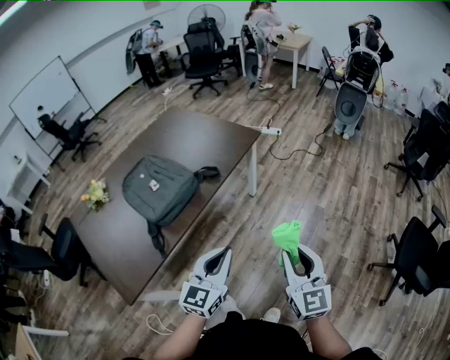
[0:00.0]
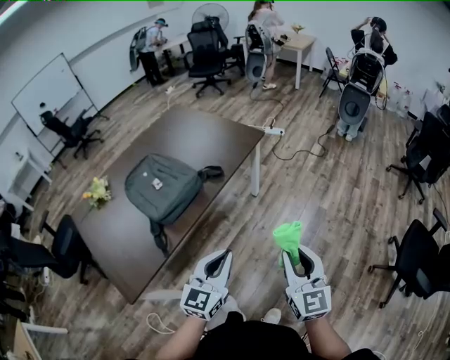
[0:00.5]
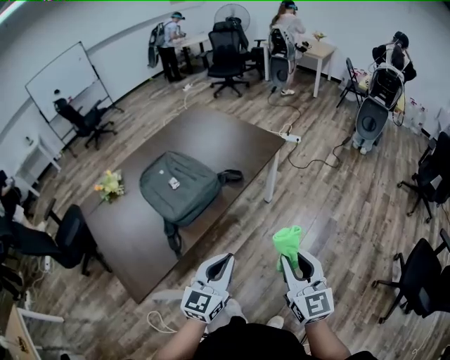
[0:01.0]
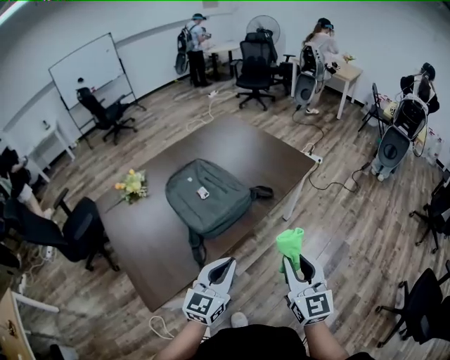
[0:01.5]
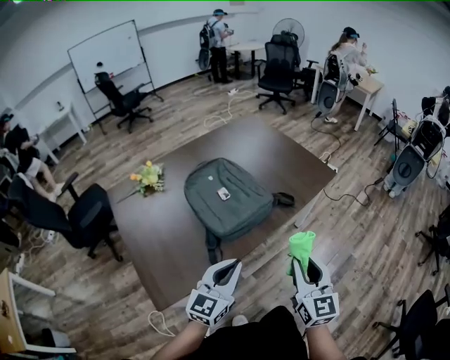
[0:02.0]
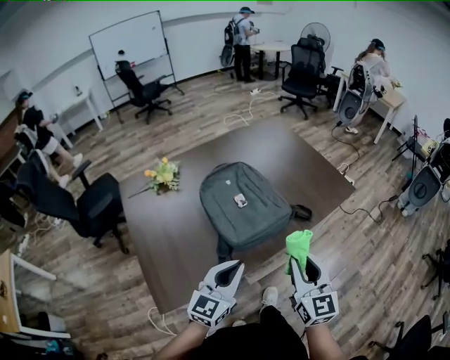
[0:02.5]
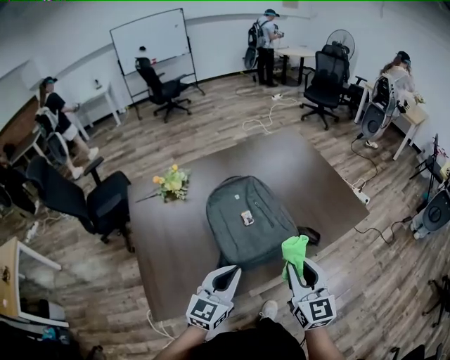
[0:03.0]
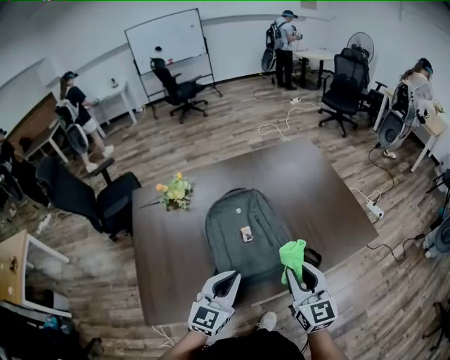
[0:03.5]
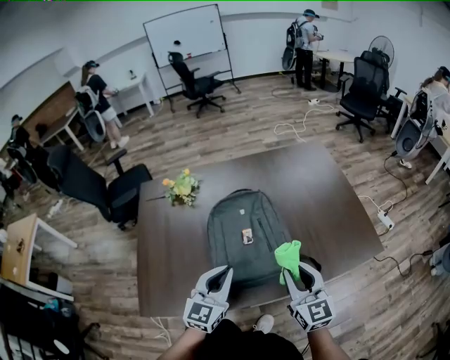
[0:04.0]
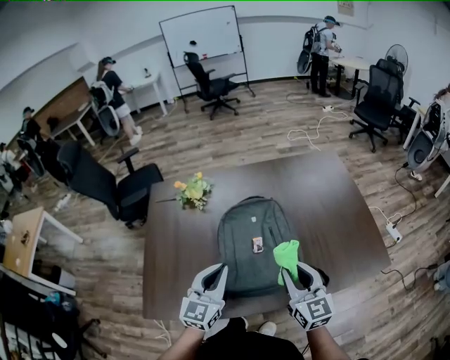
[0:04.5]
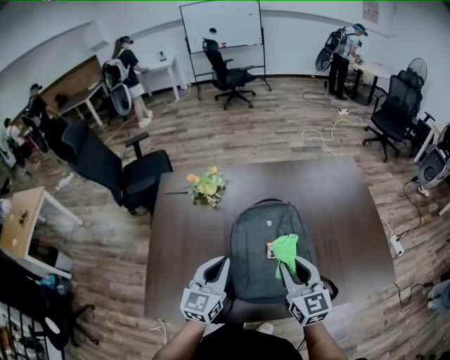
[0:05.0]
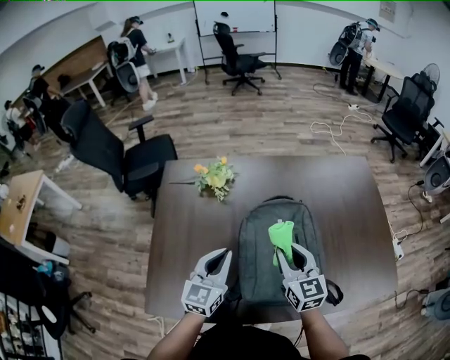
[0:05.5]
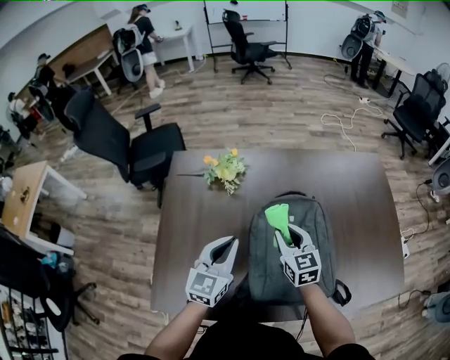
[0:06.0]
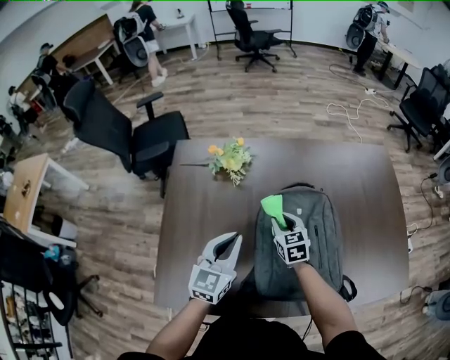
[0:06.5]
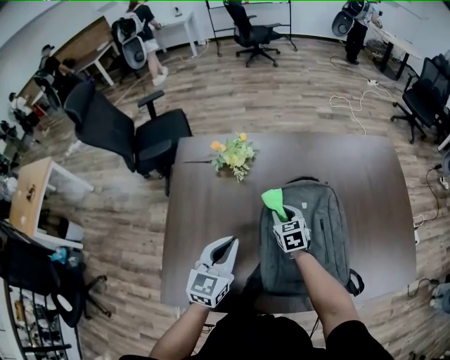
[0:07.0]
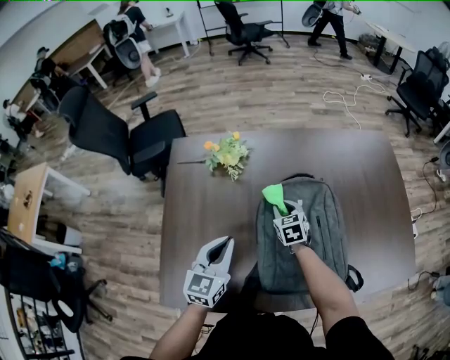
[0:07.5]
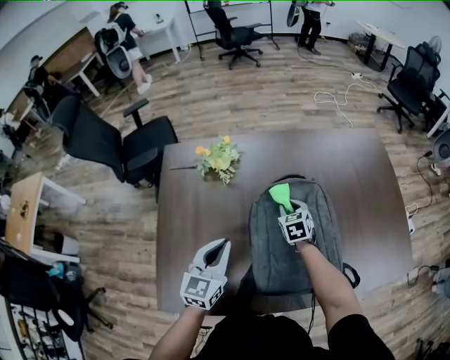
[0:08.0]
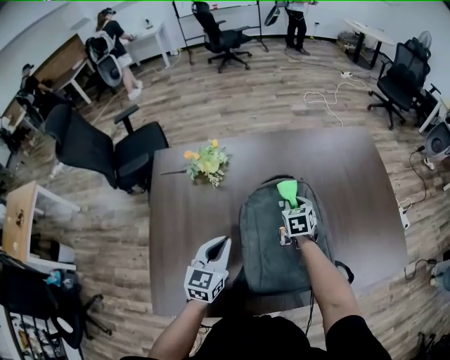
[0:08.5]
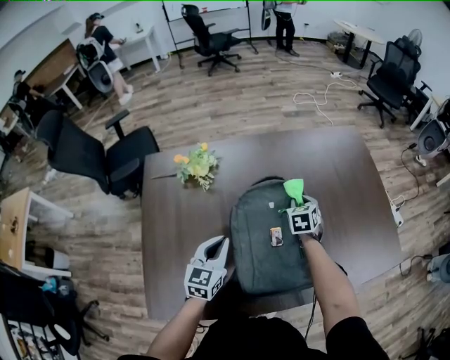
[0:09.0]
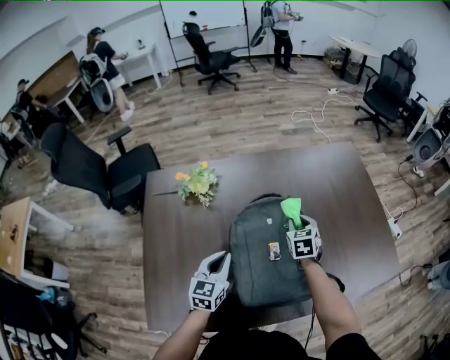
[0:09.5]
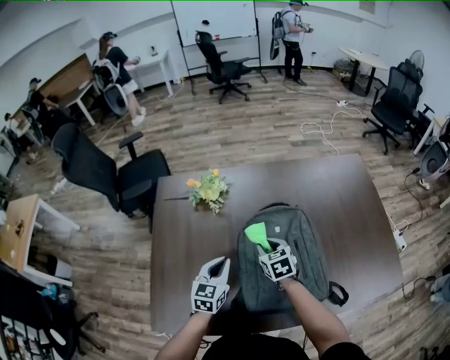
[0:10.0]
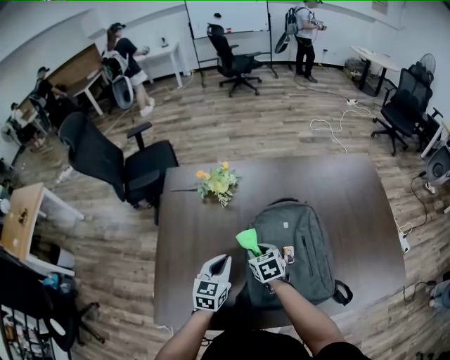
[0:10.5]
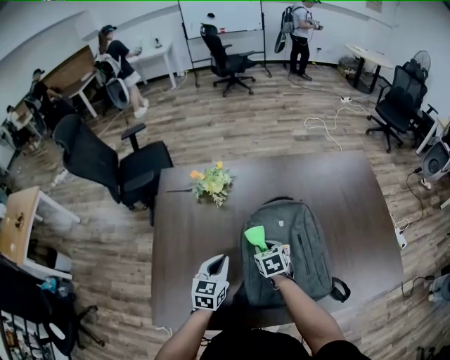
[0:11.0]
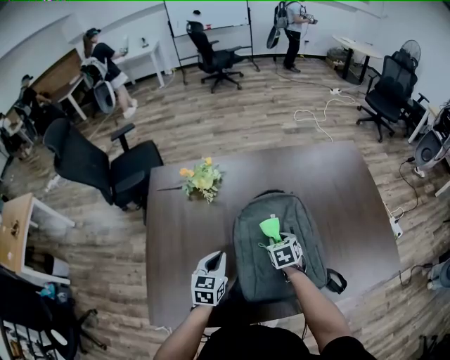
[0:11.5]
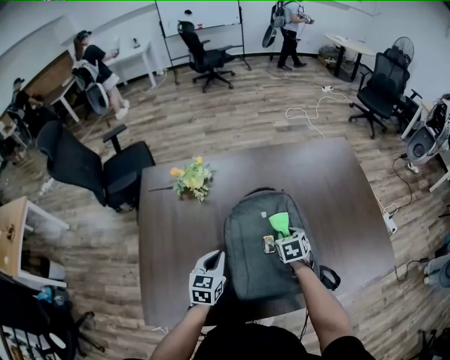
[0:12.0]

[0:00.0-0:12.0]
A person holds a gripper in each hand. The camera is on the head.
0:00.0 to 0:02.0: The left gripper moves to the left, about 20 cm, while the right gripper moves to the left and forward, some 25 cm.
0:02.0 to 0:04.0: The right gripper ends up roughly 25 cm from where it was, and swivels roughly 30 degrees. The left gripper moves approximately 20 cm, and rotates about 30 degrees.
0:04.0 to 0:06.0: Both grippers travel together forward and to the left, about 25 cm. The right gripper changes its angle by roughly 20 degrees.
0:06.0 to 0:08.0: The right gripper travels downward and forward by about 15 cm, and rotates roughly 30 degrees.
0:08.0 to 0:10.0: The right gripper travels backward by some 5 cm, and travels to the right and back again, roughly 10 cm each way; the left gripper travels downward by roughly 5 cm.
0:10.0 to 0:12.0: The right gripper shifts some 15 cm to the right, and rotates approximately 20 degrees.

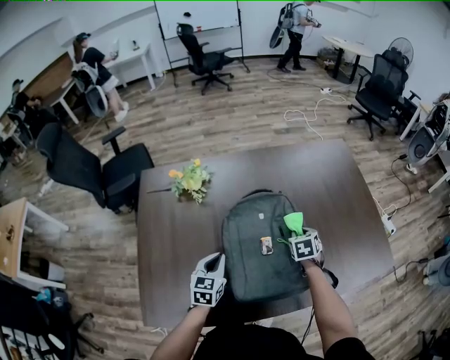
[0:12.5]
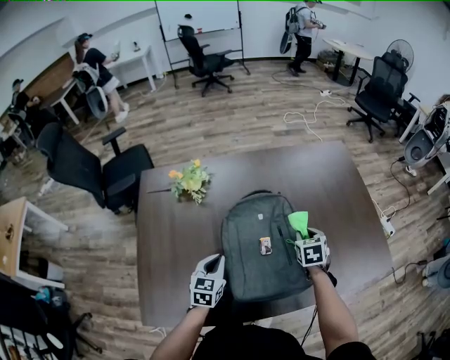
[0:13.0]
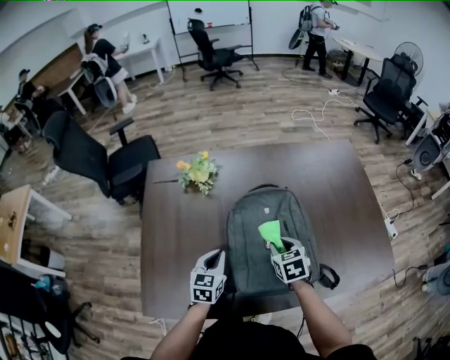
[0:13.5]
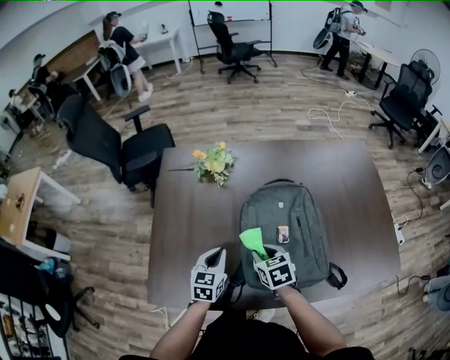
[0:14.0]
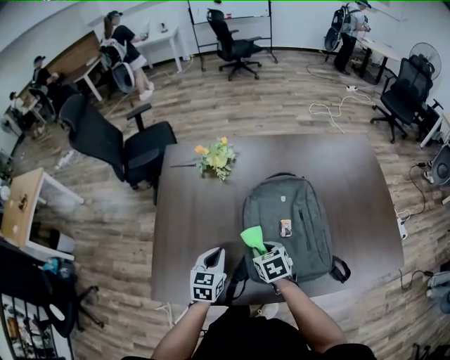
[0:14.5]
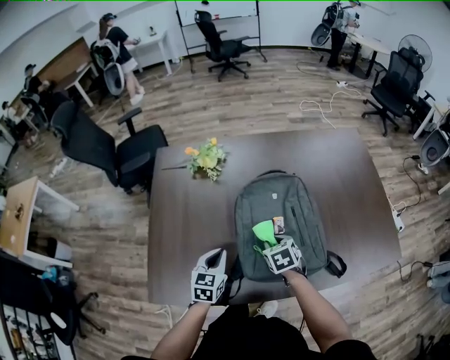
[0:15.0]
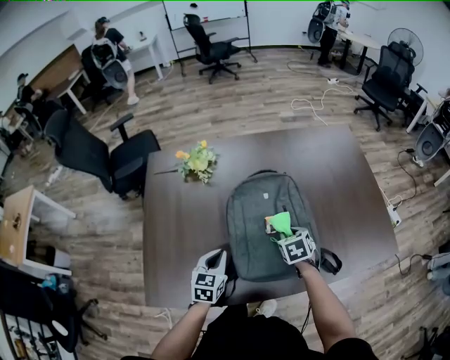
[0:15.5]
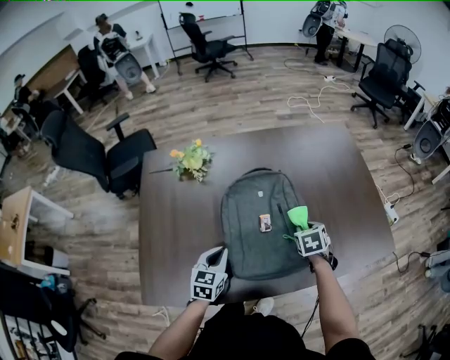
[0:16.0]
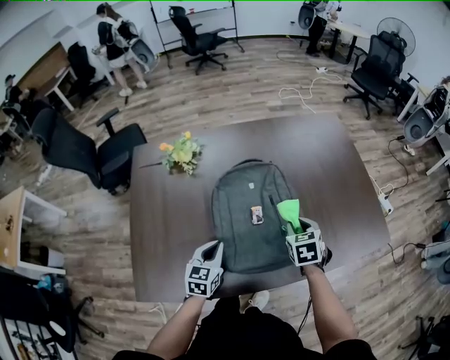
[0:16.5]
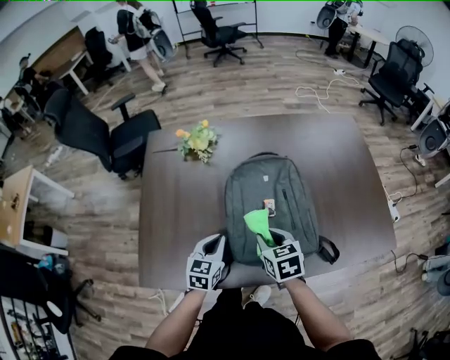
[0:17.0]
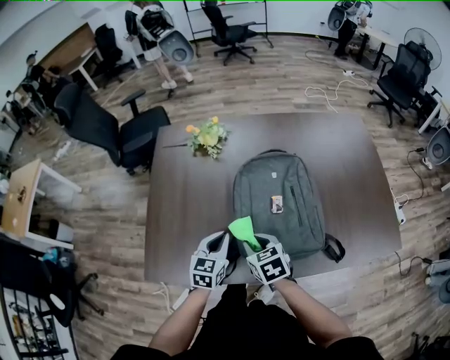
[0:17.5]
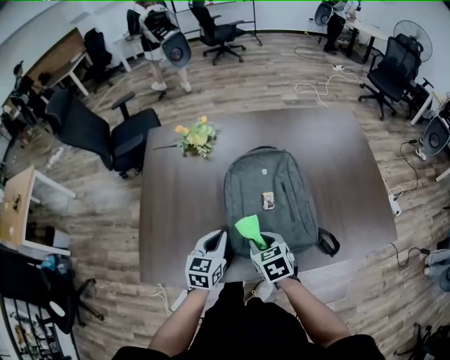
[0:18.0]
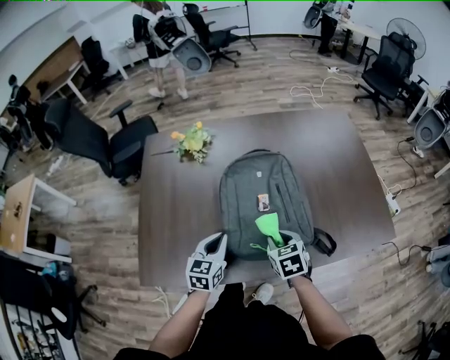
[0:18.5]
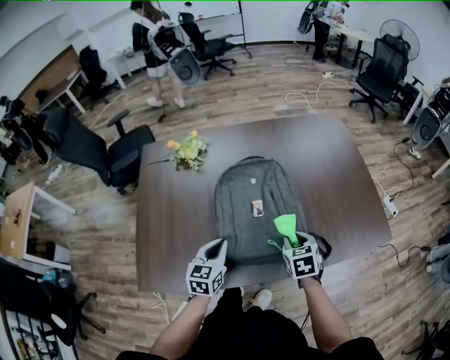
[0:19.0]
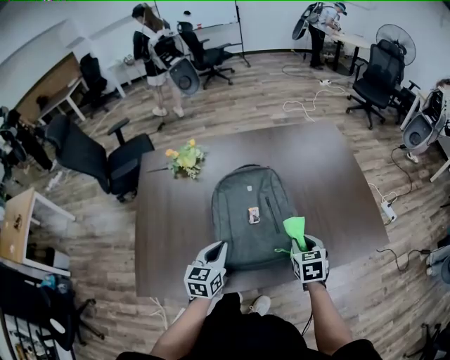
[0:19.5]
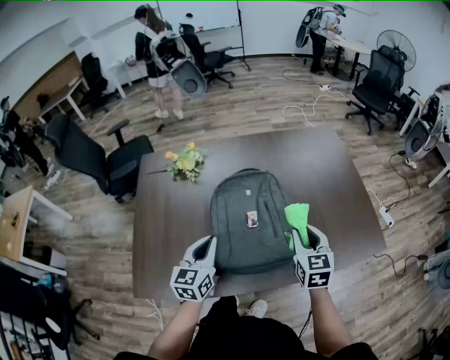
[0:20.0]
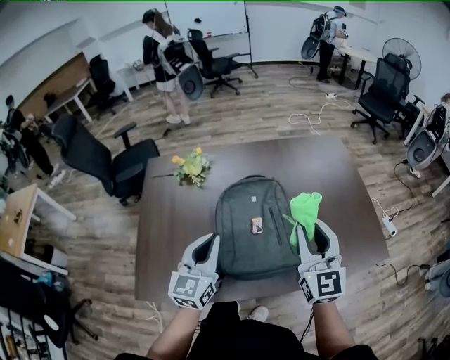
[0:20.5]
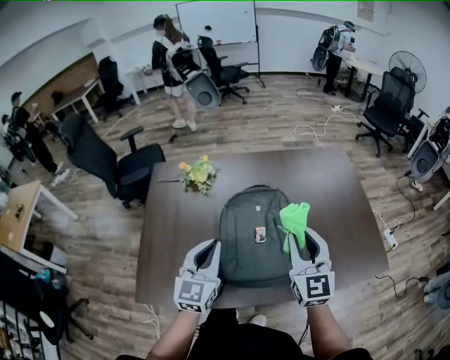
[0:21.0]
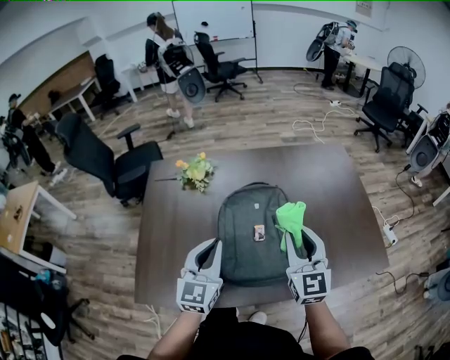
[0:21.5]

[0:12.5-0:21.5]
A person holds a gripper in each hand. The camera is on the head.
0:12.5 to 0:14.5: The right gripper heads to the left and backward, covering some 25 cm, and changes its angle by approximately 30 degrees, while the left gripper travels backward and to the left by roughly 10 cm.
0:14.5 to 0:17.0: The right gripper travels upward by approximately 5 cm, and moves roughly 25 cm to the right and comes back, while the left gripper heads to the right, covering some 5 cm.
0:17.0 to 0:19.5: The right gripper moves to the right, about 20 cm. The left gripper shifts roughly 5 cm to the right.
0:19.5 to 0:21.5: Both grippers travel together upward, about 15 cm. The left gripper rotates some 30 degrees; the right gripper angles its fingers upward, by some 40 degrees.

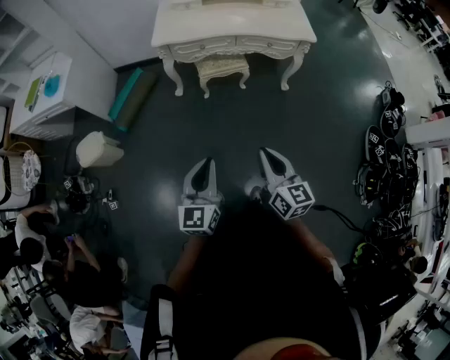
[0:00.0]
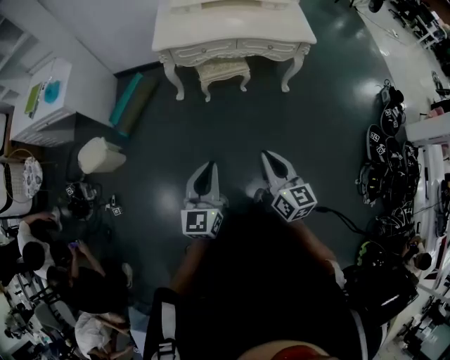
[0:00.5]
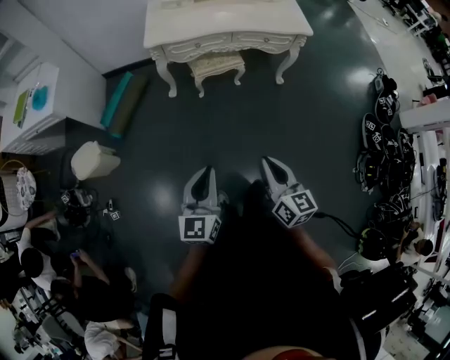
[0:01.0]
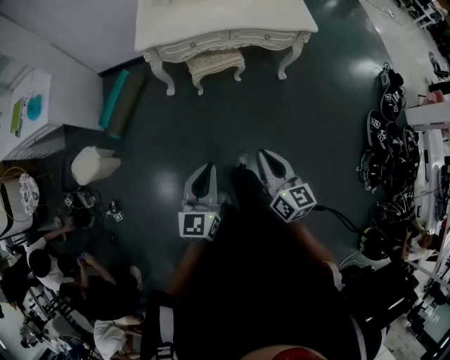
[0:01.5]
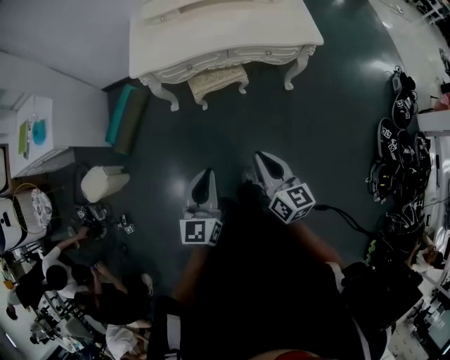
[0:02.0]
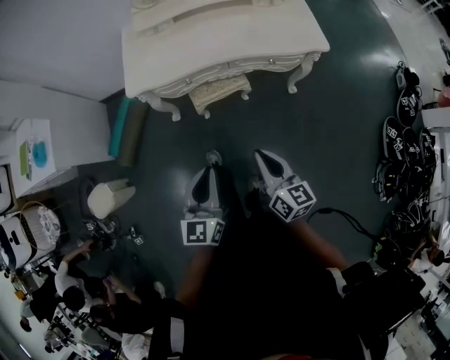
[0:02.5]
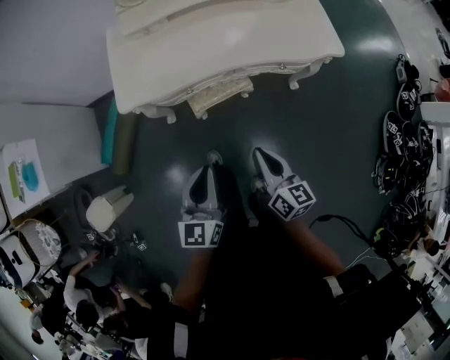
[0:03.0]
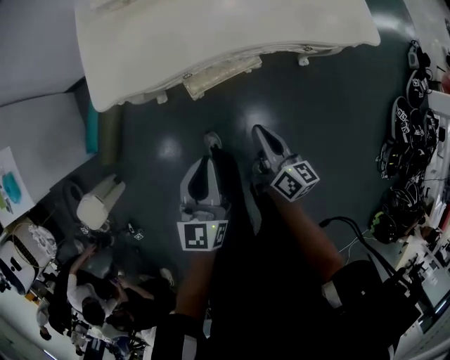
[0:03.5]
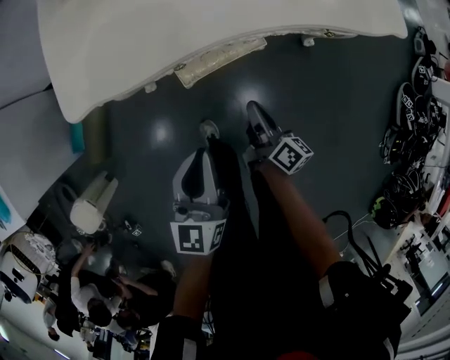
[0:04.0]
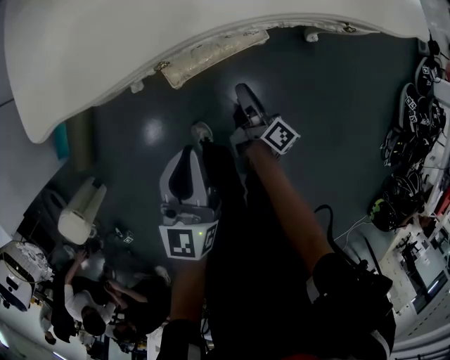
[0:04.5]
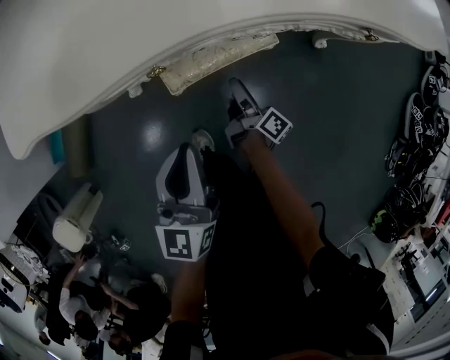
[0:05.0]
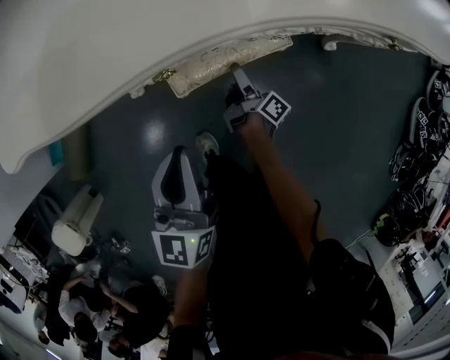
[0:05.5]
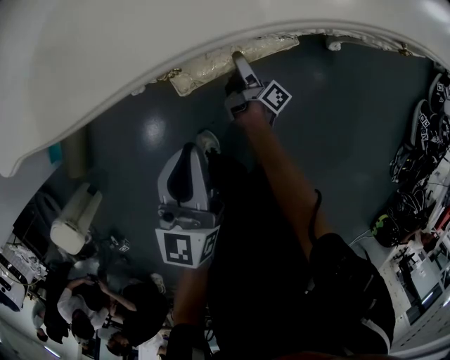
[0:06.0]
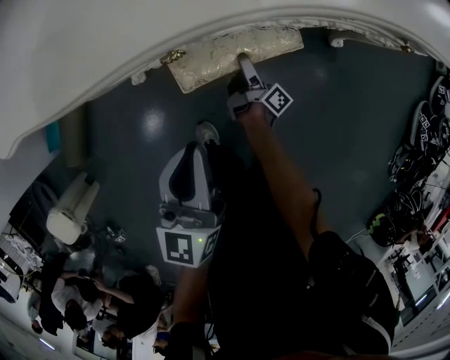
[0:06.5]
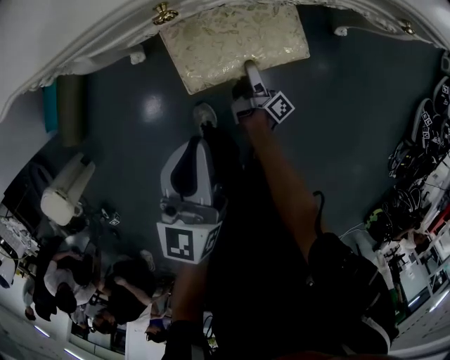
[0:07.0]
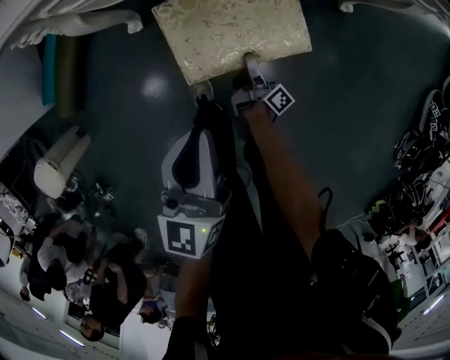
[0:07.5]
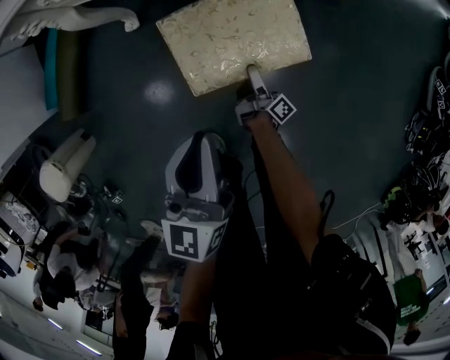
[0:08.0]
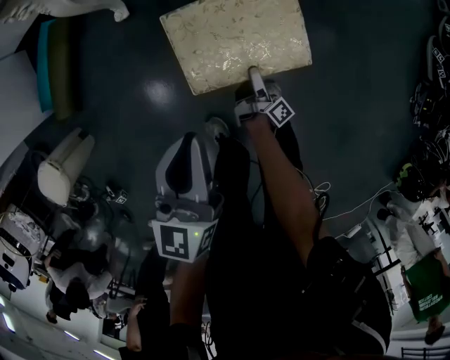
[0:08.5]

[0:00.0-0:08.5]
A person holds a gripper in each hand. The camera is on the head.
0:00.0 to 0:02.0: The two grippers go approximately 20 cm forward.
0:02.0 to 0:04.0: The left gripper is displaced forward and downward by approximately 40 cm; the right gripper goes approximately 50 cm downward and forward, and rotates about 40 degrees.
0:04.0 to 0:06.5: The right gripper goes approximately 30 cm downward, turns by about 30 degrees, and opens; the left gripper shifts approximately 15 cm downward.
0:06.5 to 0:08.5: Both grippers move backward, some 35 cm.
